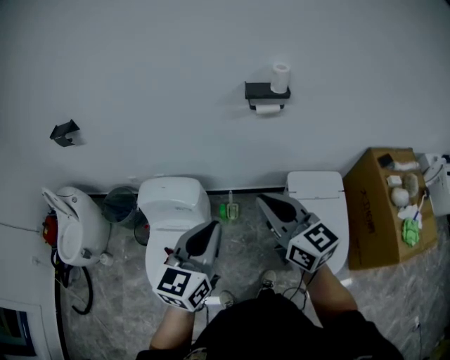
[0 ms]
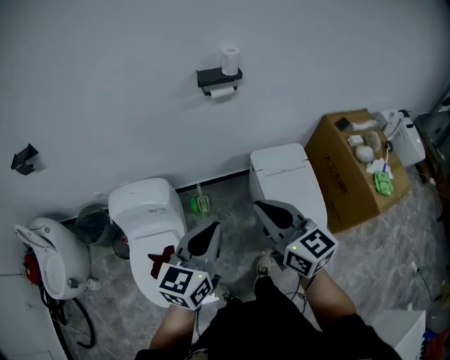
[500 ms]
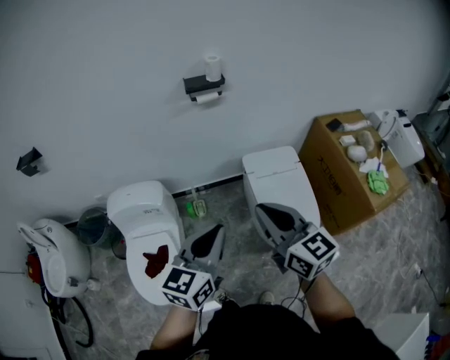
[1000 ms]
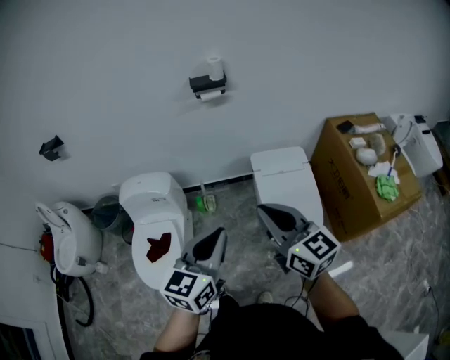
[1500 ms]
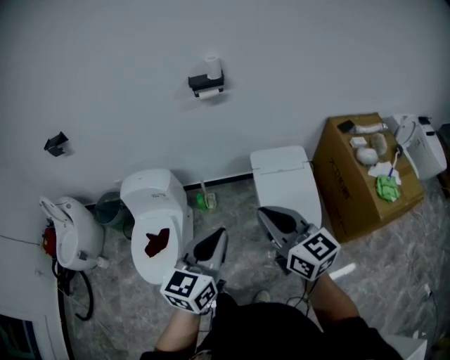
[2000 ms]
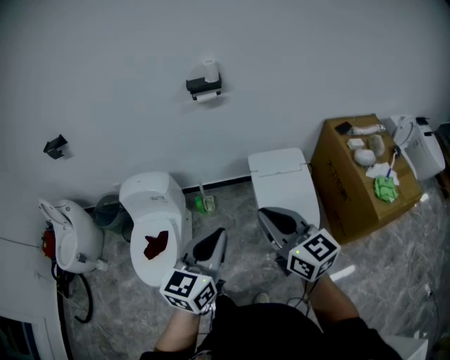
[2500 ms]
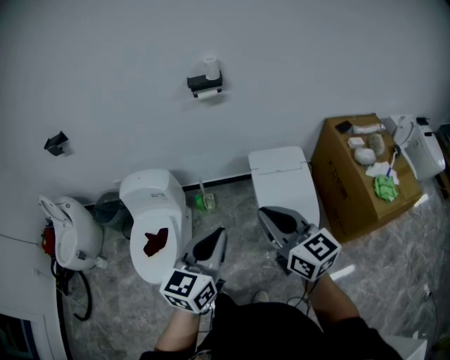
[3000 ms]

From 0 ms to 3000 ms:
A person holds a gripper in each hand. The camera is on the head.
From 0 ms to 1500 ms: The two grippers go approximately 25 cm backward and to the right.
From 1500 ms to 3000 ms: The right gripper moves roughly 5 cm. The left gripper moves roughly 5 cm.

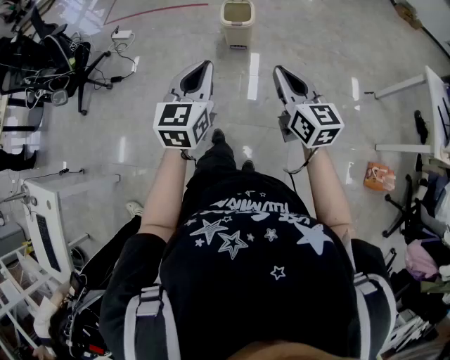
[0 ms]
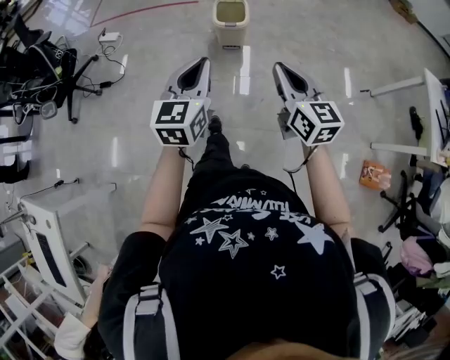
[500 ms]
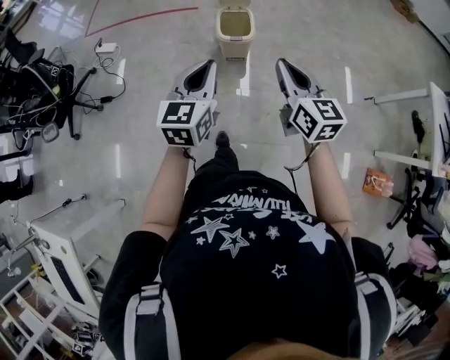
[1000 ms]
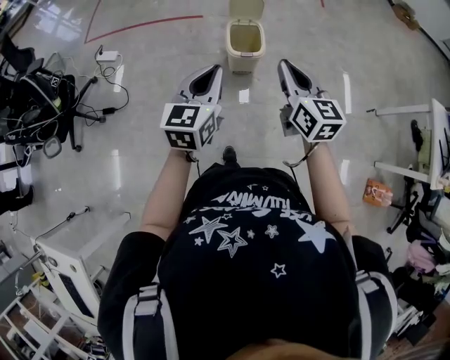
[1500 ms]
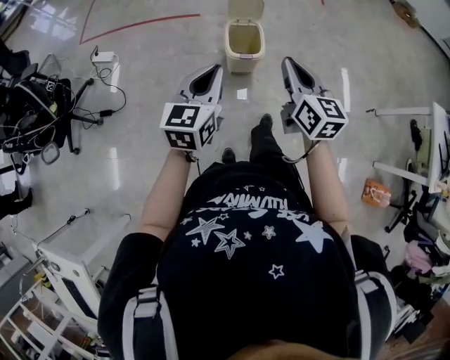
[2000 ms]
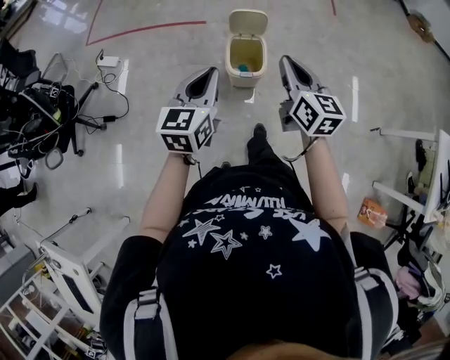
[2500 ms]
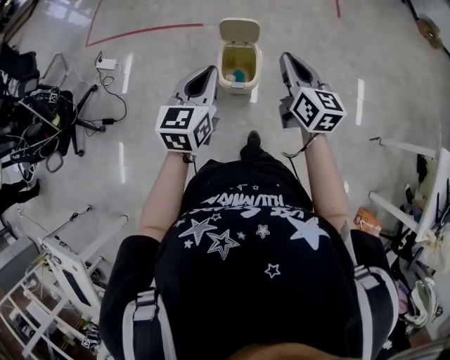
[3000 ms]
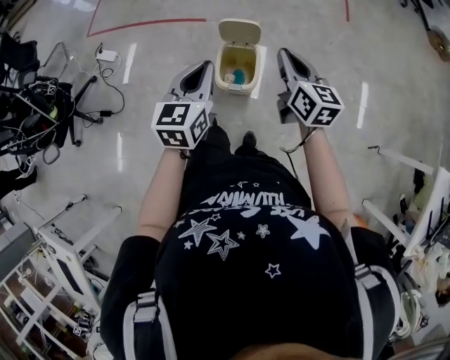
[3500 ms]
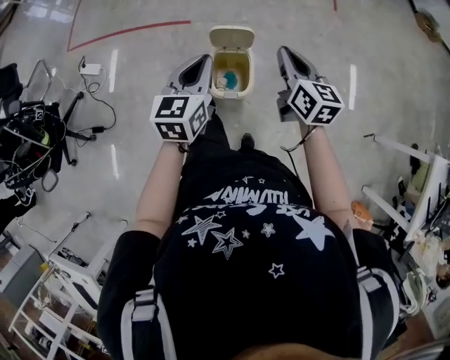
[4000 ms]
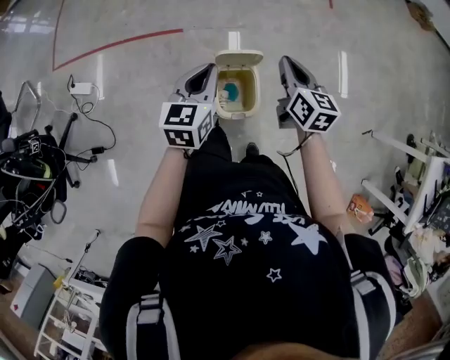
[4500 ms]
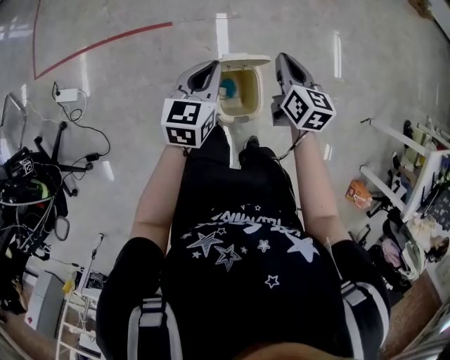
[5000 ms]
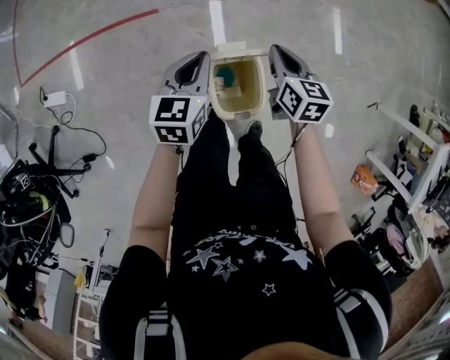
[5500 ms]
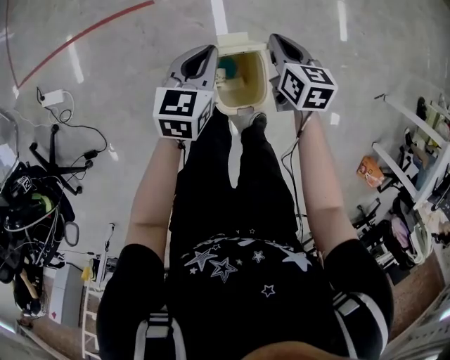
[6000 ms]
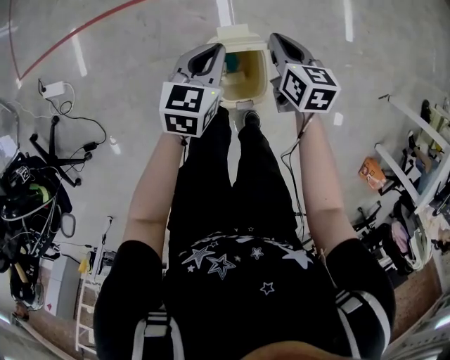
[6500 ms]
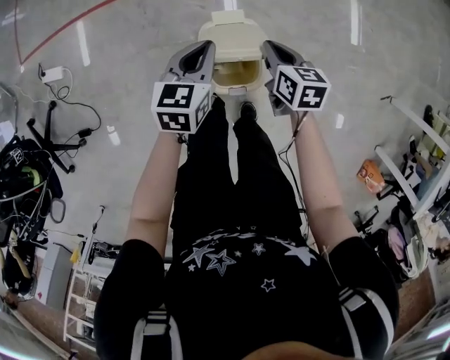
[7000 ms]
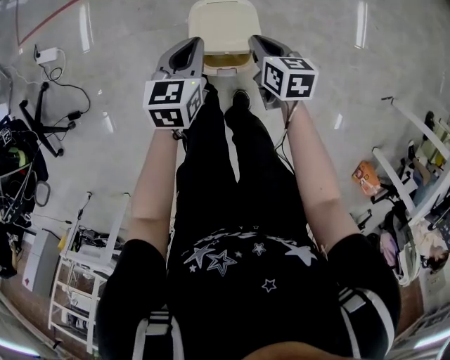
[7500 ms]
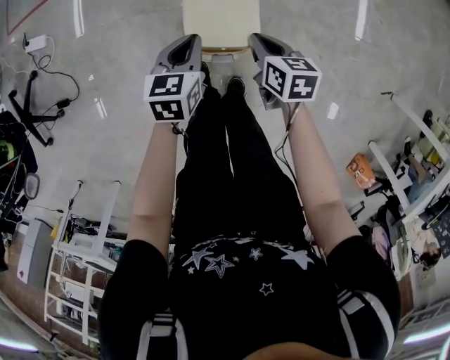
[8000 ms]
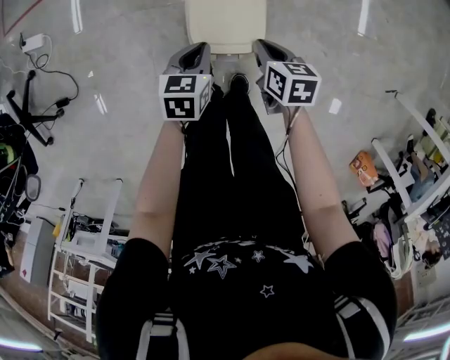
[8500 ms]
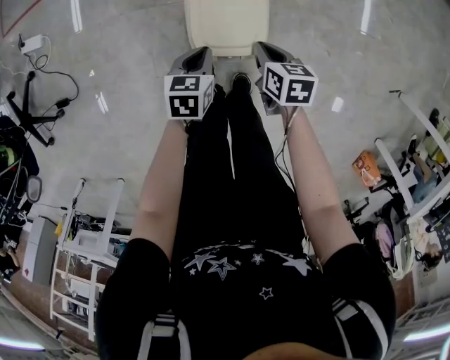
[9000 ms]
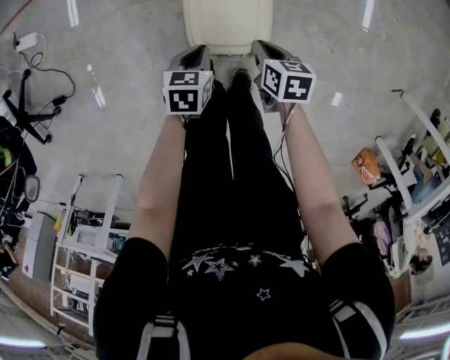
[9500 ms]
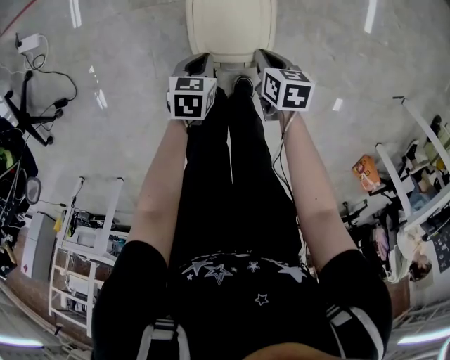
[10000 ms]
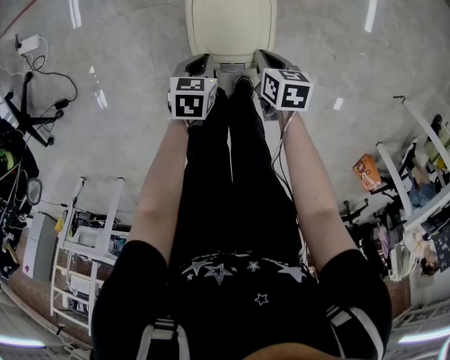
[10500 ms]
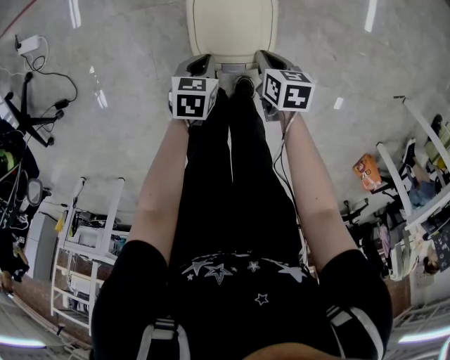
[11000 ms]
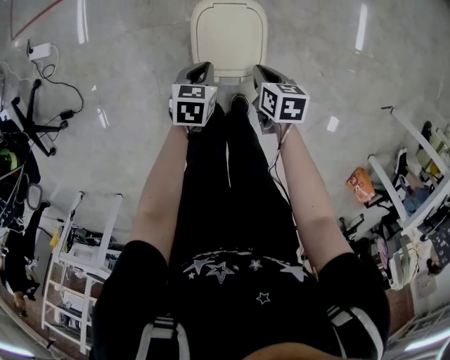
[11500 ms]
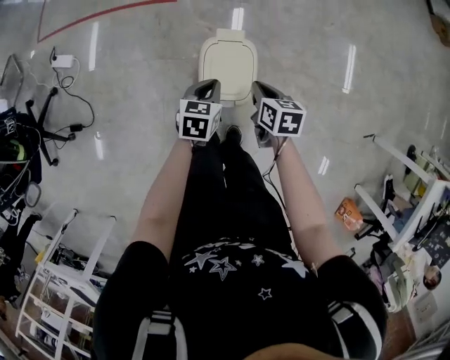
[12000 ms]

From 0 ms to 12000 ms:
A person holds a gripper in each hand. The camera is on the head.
From 0 ms to 2000 ms: The grippers both shift forward by some 35 cm.
From 2000 ms to 4000 ms: The two grippers go approximately 30 cm forward.
From 4000 ms to 6000 ms: Both grippers travel together downward and forward, about 30 cm. The left gripper changes its angle by some 20 degrees; the right gripper rotates about 30 degrees.
From 6000 ms to 8000 ms: Both grippers move backward and downward, some 20 cm.
From 8000 ms to 10000 ms: Both grippers travel together downward, some 15 cm.
From 10000 ms to 12000 ms: The two grippers go approximately 20 cm upward.

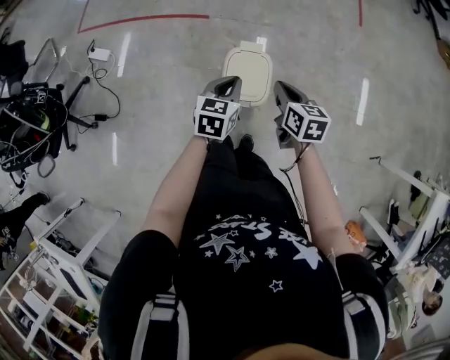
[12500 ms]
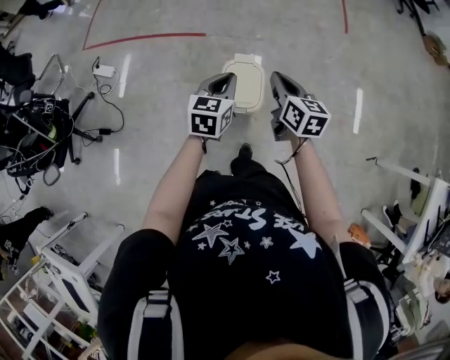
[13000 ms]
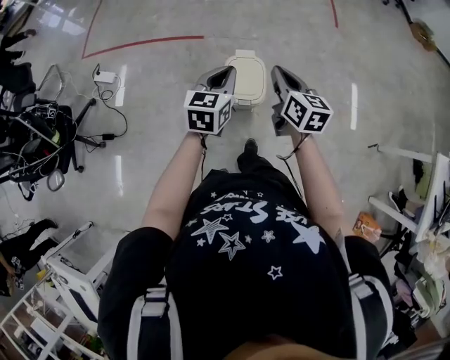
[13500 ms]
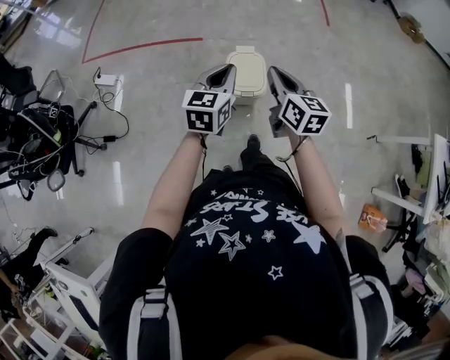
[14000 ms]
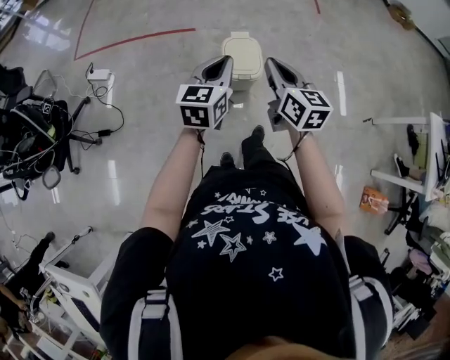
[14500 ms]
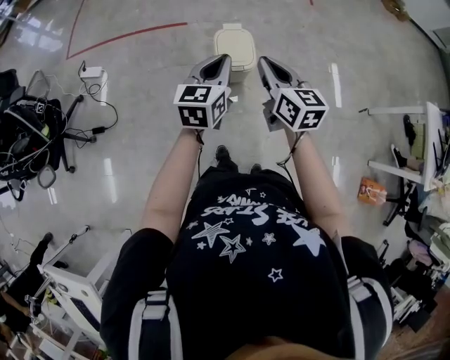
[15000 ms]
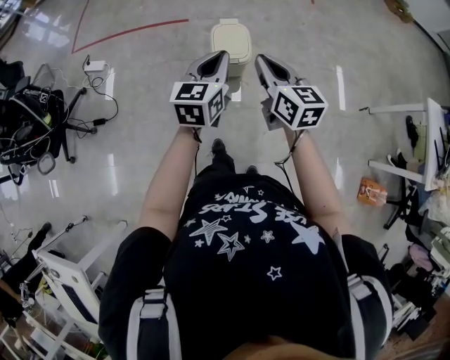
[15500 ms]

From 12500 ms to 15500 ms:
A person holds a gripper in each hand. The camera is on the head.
From 12500 ms to 14000 ms: The two grippers go some 20 cm upward and backward. The right gripper changes its angle by roughly 20 degrees.
From 14000 ms to 15500 ms: Both grippers travel together backward, roughly 15 cm.

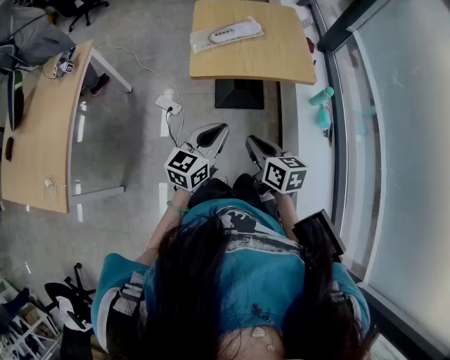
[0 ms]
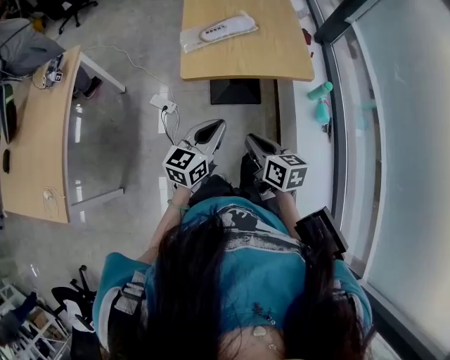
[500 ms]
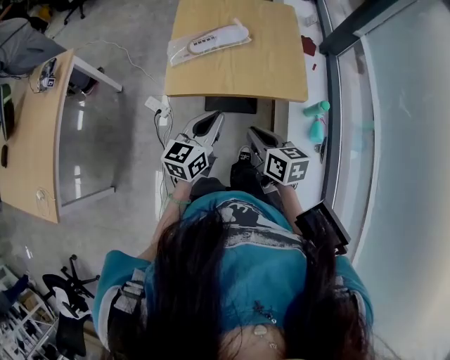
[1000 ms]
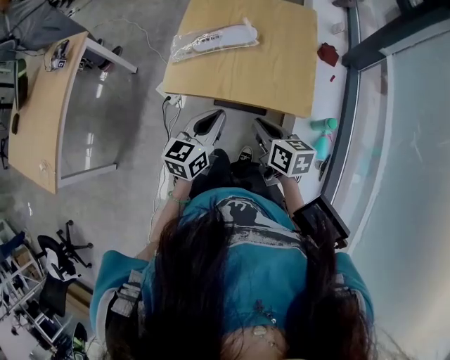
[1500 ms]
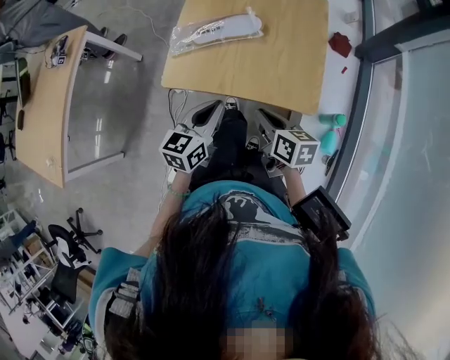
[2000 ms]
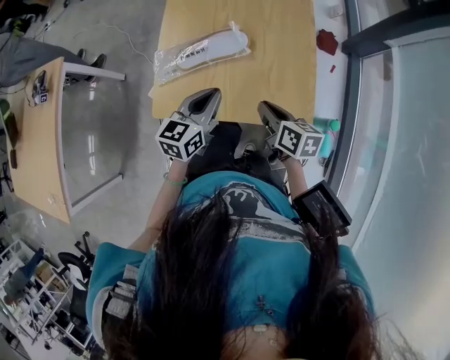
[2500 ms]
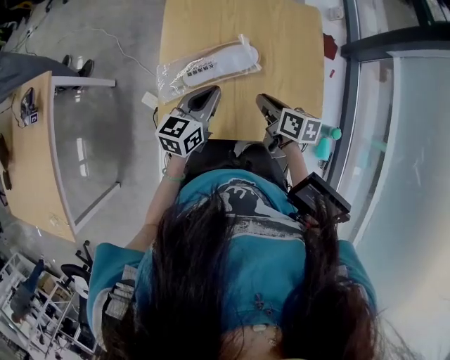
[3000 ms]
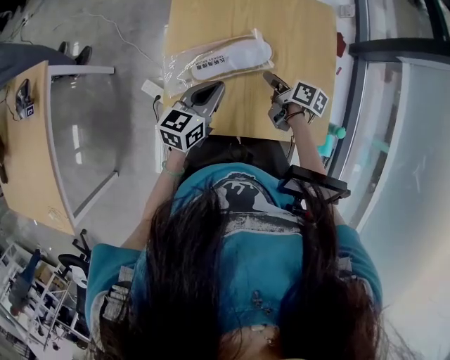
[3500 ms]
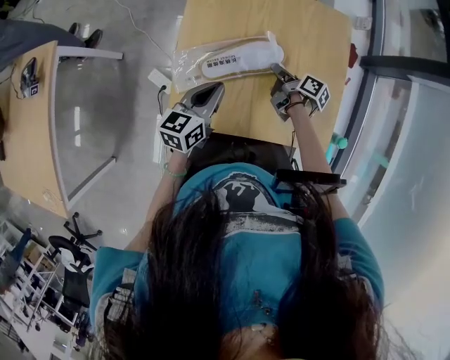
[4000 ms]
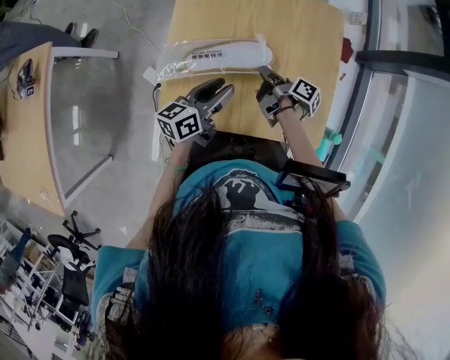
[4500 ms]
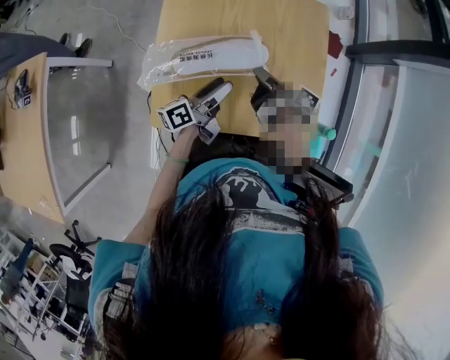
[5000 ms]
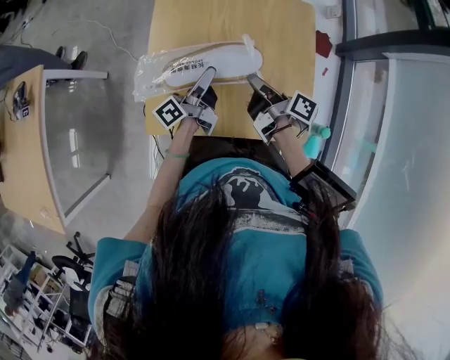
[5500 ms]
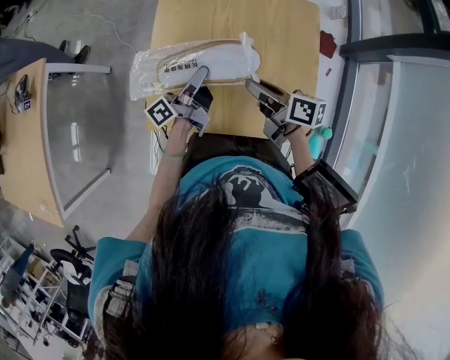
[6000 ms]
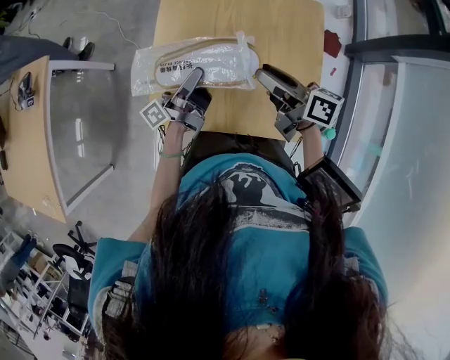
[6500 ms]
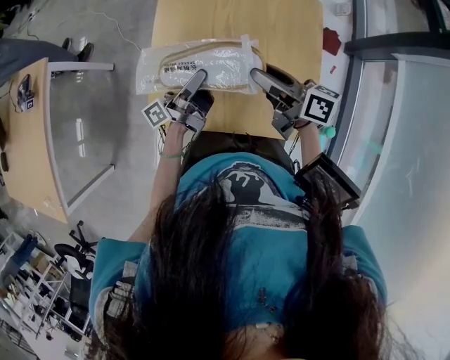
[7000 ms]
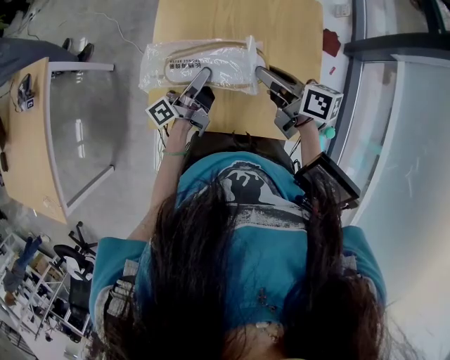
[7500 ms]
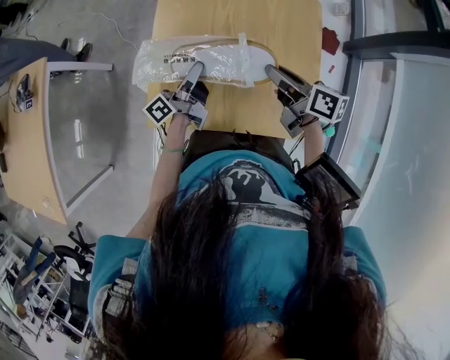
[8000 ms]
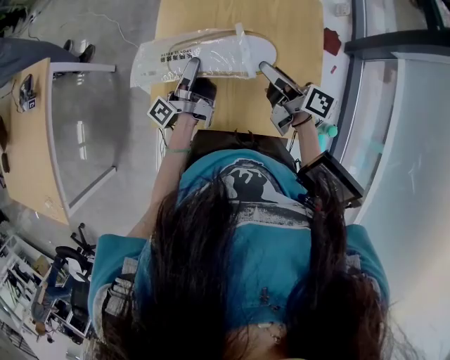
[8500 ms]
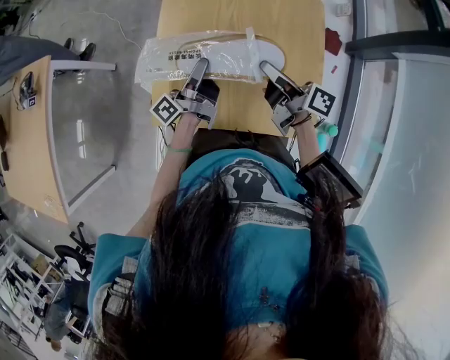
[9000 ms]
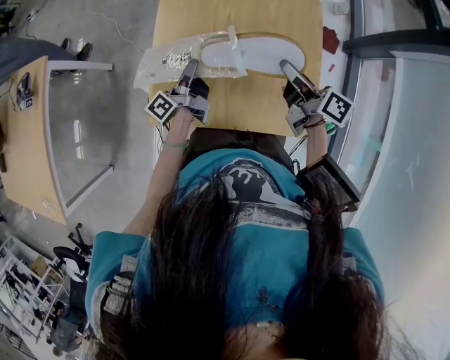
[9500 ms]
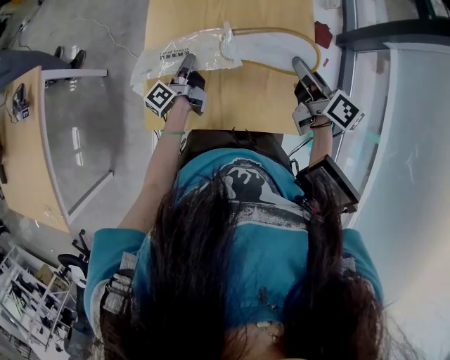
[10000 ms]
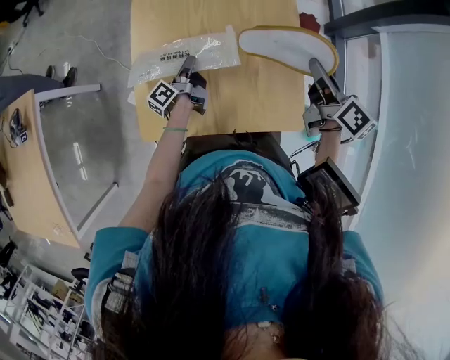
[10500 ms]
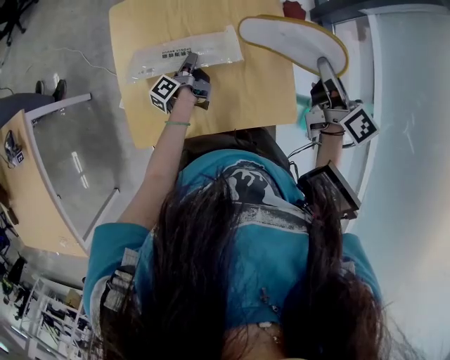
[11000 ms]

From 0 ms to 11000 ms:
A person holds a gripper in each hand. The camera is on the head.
From 0 ms to 2000 ms: Both grippers move forward and to the right, approximately 35 cm. The left gripper swivels approximately 20 degrees.
From 2000 ms to 3500 ms: The right gripper heads forward and downward, covering roughly 30 cm, rotates approximately 30 degrees, and opens its fingers. The left gripper heads forward, covering approximately 25 cm.
From 3500 ms to 5500 ms: The right gripper goes approximately 10 cm upward, swivels some 30 degrees, and closes up; the left gripper ends up roughly 5 cm from where it was, twists about 50 degrees counterclockwise, seen from behind, and opens.
From 5500 ms to 7500 ms: The right gripper goes about 5 cm upward, and rotates approximately 40 degrees.
From 7500 ms to 9000 ms: The right gripper opens and closes again.
From 9000 ms to 11000 ms: The right gripper is displaced to the right by about 20 cm, and changes its angle by roughly 40 degrees; the left gripper goes some 15 cm downward and to the right, and changes its angle by roughly 30 degrees.
